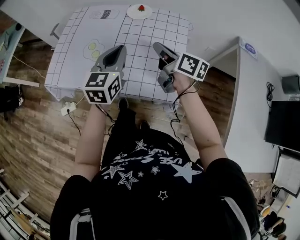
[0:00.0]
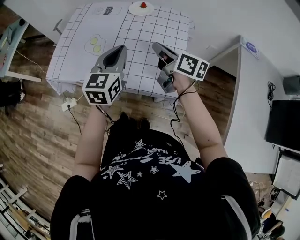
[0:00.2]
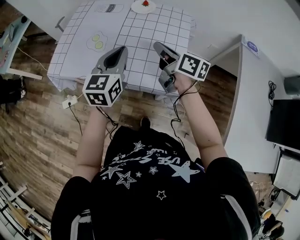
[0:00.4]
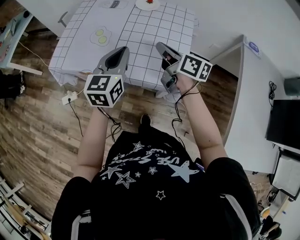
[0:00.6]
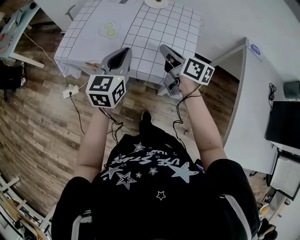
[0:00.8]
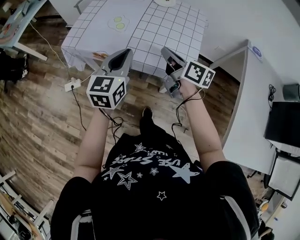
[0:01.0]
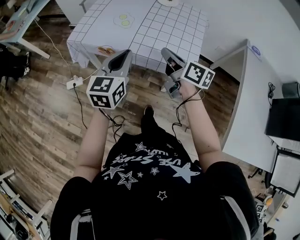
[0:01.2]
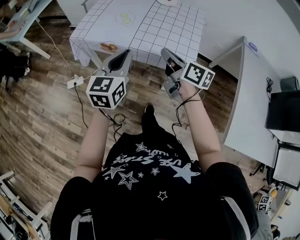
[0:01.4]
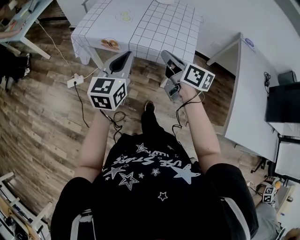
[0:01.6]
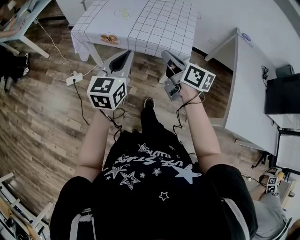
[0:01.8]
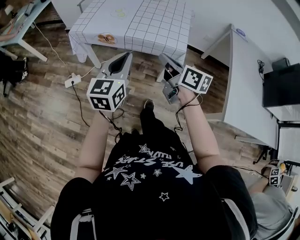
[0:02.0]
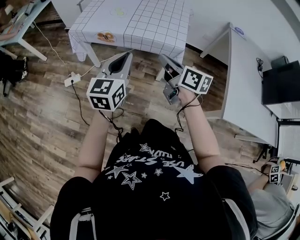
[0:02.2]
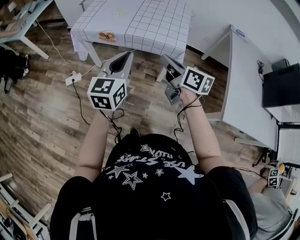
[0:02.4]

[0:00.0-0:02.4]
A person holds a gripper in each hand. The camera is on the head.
0:00.0 to 0:01.2: The left gripper ends up roughly 10 cm from where it was.
0:01.2 to 0:02.4: The left gripper ends up some 15 cm from where it was.

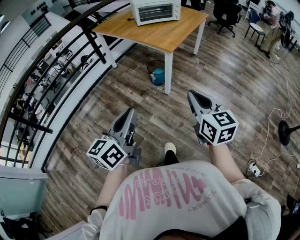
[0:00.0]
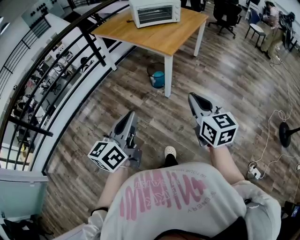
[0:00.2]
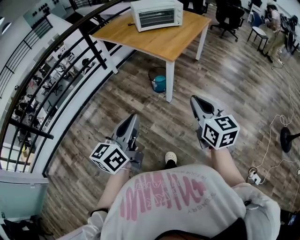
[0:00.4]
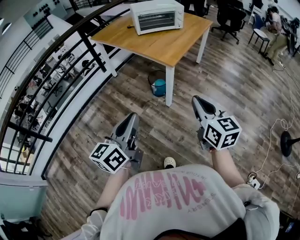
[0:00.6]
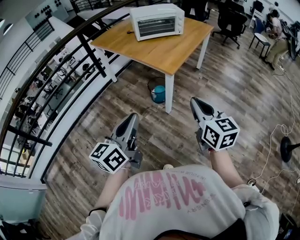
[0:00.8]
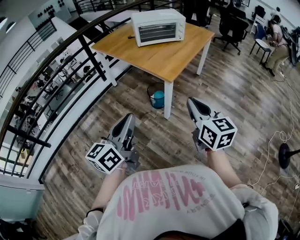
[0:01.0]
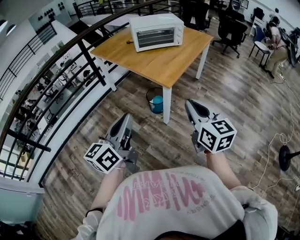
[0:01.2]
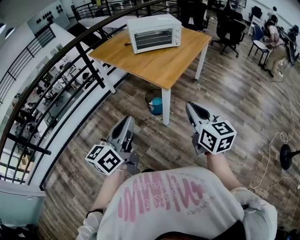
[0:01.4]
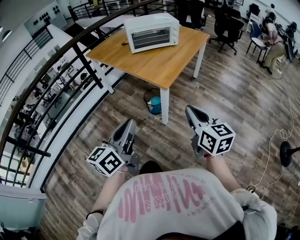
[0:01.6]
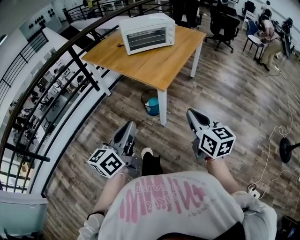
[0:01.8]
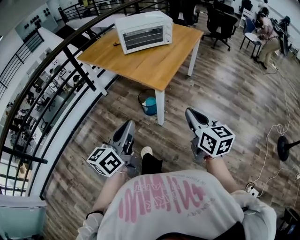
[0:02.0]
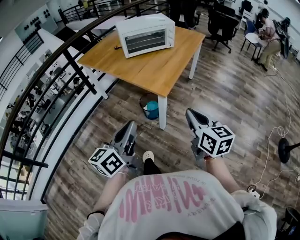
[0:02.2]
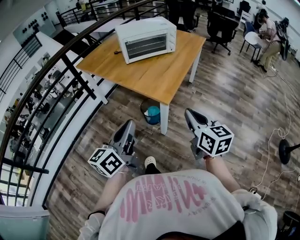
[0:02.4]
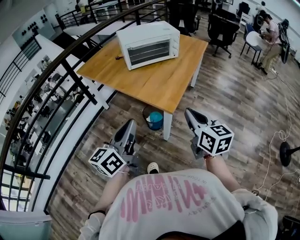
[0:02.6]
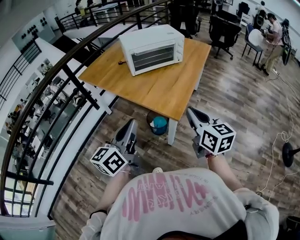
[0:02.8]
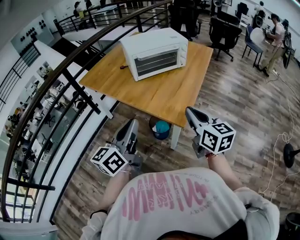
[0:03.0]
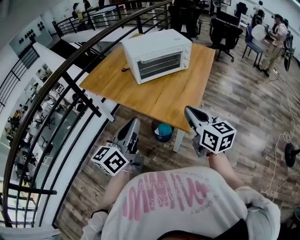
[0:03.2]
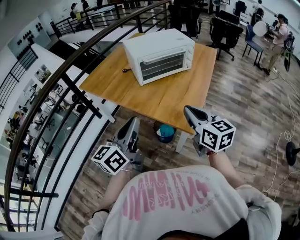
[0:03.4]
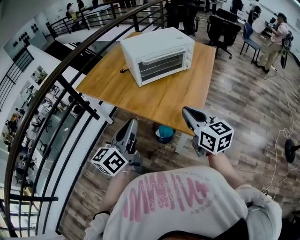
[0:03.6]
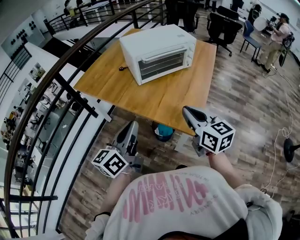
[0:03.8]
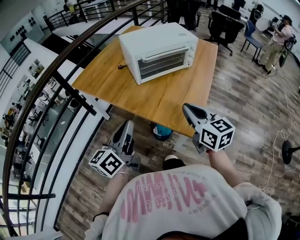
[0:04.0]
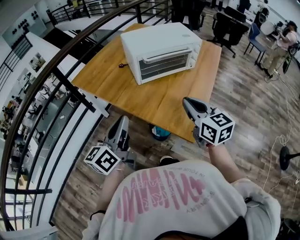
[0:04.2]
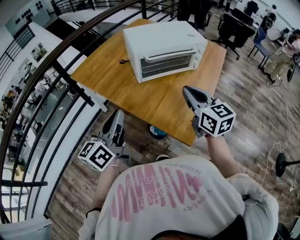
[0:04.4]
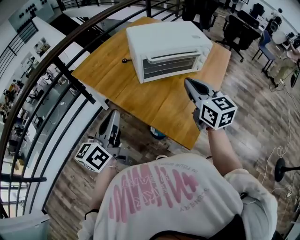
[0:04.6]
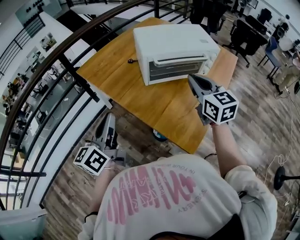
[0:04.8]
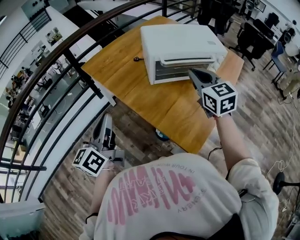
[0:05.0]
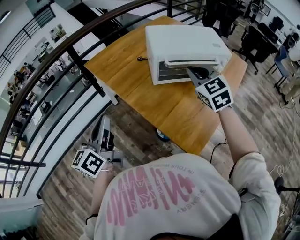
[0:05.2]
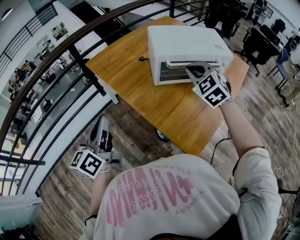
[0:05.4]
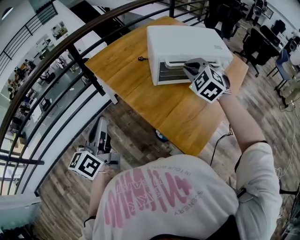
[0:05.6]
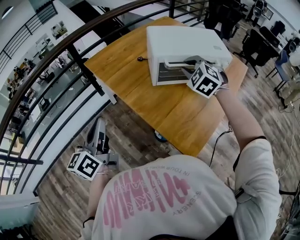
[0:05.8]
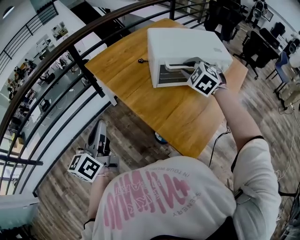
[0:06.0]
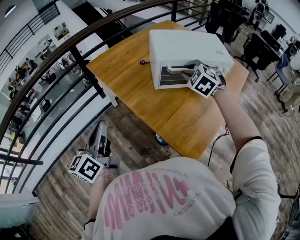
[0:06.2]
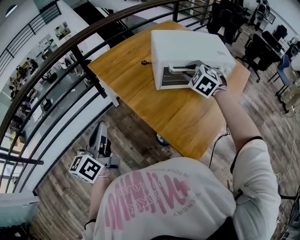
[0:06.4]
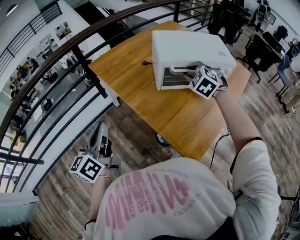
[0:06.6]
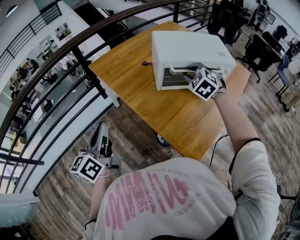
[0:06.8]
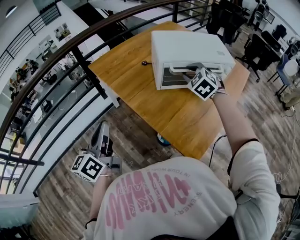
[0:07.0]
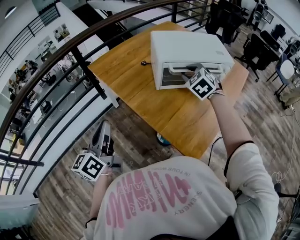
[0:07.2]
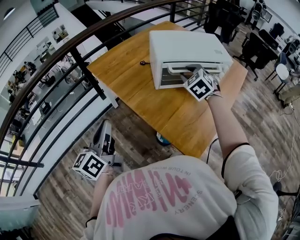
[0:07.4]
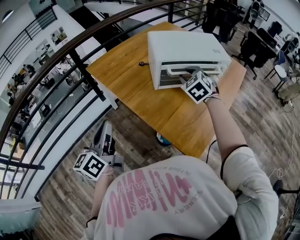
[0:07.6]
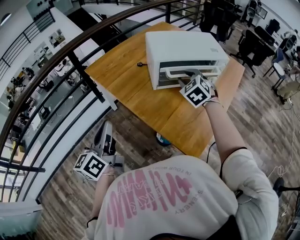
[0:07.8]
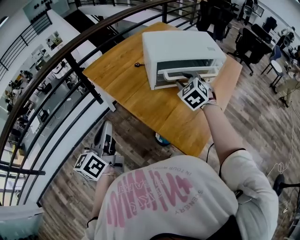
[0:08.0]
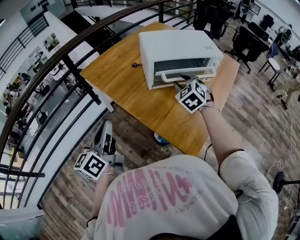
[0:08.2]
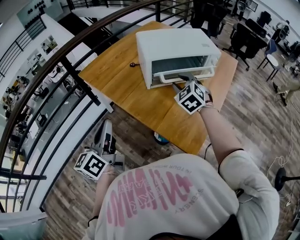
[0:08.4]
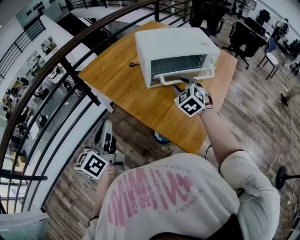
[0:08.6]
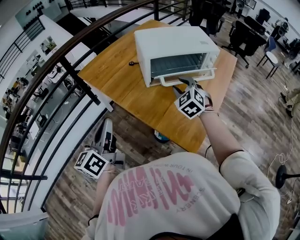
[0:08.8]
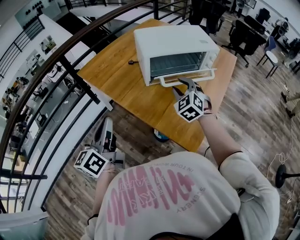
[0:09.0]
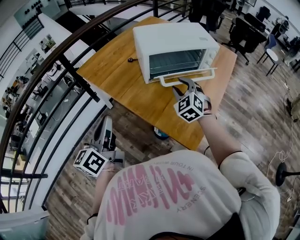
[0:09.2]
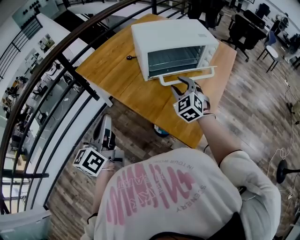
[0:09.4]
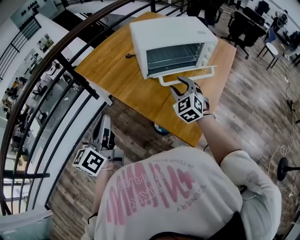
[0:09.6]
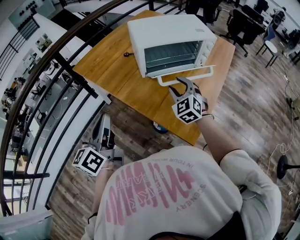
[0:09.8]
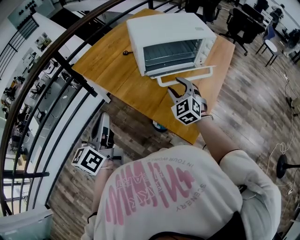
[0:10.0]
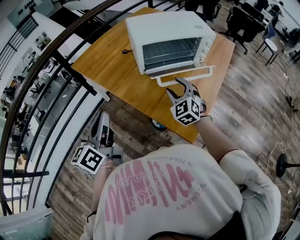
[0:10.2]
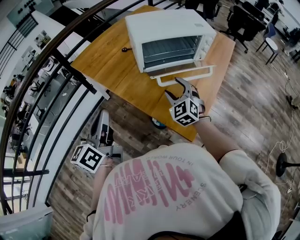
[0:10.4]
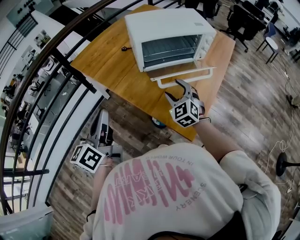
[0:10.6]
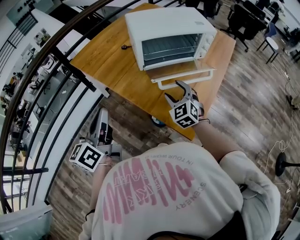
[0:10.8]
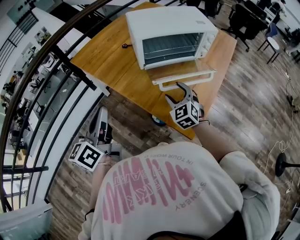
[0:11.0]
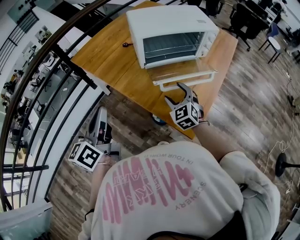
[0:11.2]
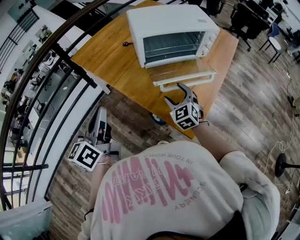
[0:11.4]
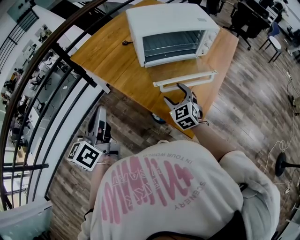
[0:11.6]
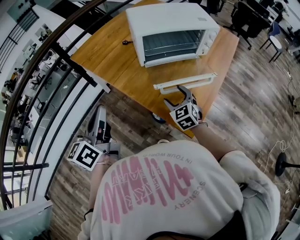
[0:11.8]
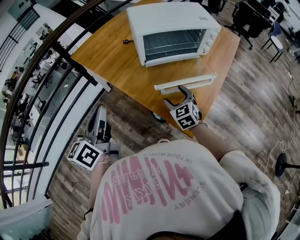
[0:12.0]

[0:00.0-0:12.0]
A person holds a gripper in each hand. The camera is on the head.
0:00.0 to 0:01.6: Both grippers move forward, about 20 cm.
0:01.6 to 0:03.0: Both grippers move forward, roughly 25 cm.
0:03.0 to 0:04.4: The right gripper is displaced forward by roughly 20 cm. Meanwhile the left gripper shifts approximately 20 cm forward and to the left.
0:04.4 to 0:06.0: The left gripper travels to the left by some 10 cm, and swivels approximately 20 degrees, while the right gripper moves forward, some 20 cm, and rolls counterclockwise, seen from behind, by approximately 60 degrees.
0:06.0 to 0:07.6: There are only small adjustments of the grippers.
0:07.6 to 0:09.0: The right gripper is displaced backward by roughly 5 cm.
0:09.0 to 0:10.4: The right gripper is displaced backward by some 5 cm.
0:10.4 to 0:12.0: The right gripper moves downward, about 5 cm, and turns by about 20 degrees.

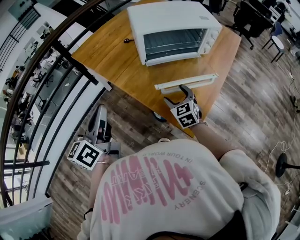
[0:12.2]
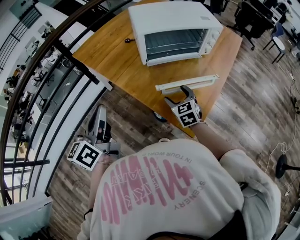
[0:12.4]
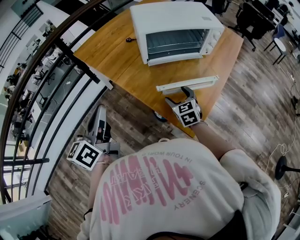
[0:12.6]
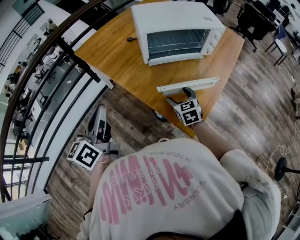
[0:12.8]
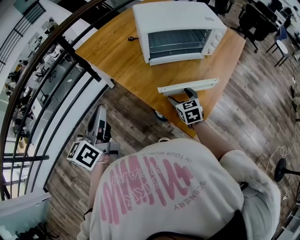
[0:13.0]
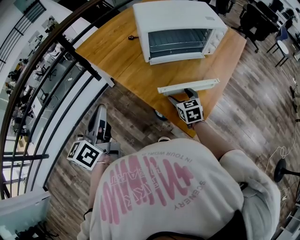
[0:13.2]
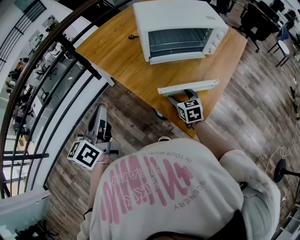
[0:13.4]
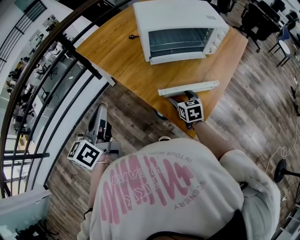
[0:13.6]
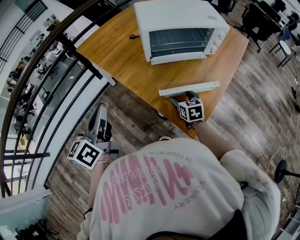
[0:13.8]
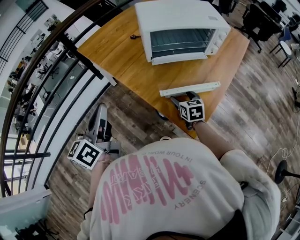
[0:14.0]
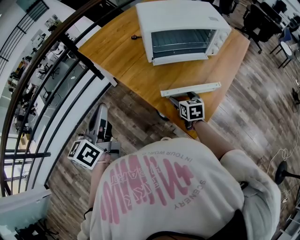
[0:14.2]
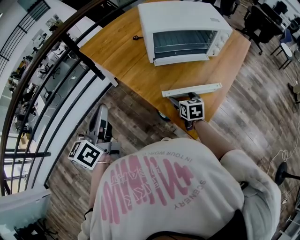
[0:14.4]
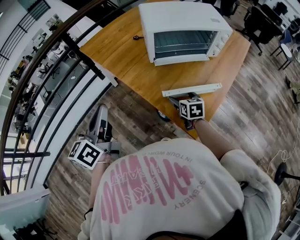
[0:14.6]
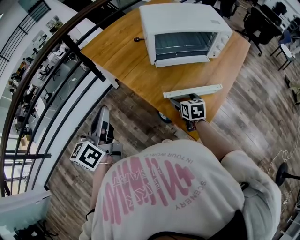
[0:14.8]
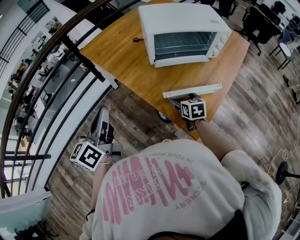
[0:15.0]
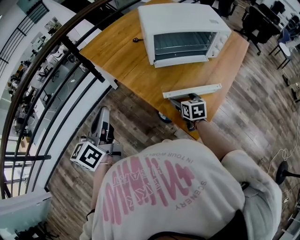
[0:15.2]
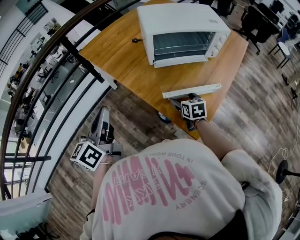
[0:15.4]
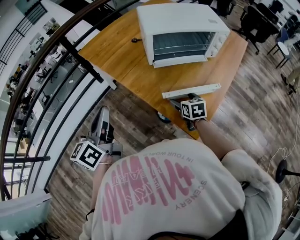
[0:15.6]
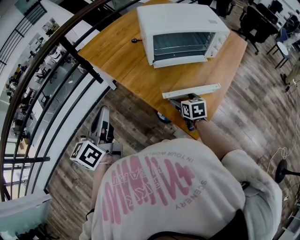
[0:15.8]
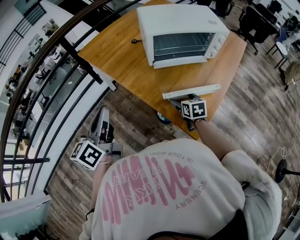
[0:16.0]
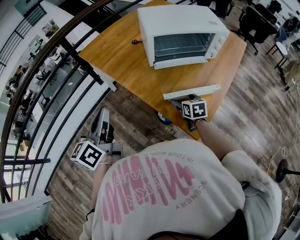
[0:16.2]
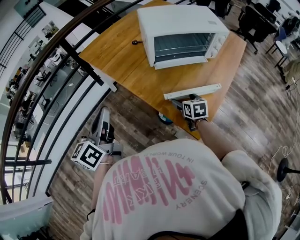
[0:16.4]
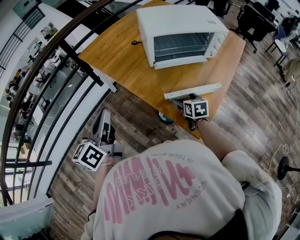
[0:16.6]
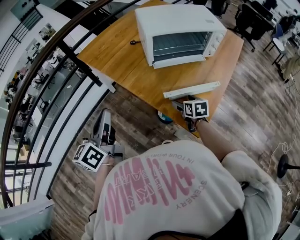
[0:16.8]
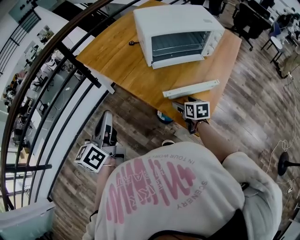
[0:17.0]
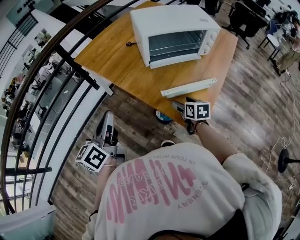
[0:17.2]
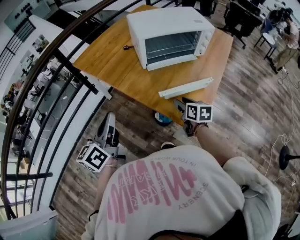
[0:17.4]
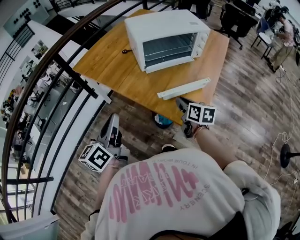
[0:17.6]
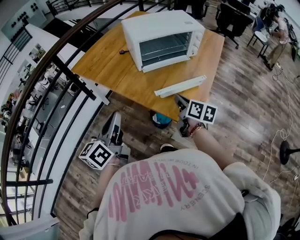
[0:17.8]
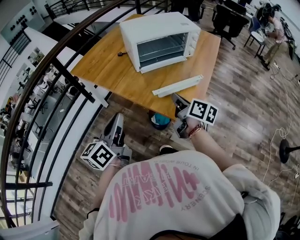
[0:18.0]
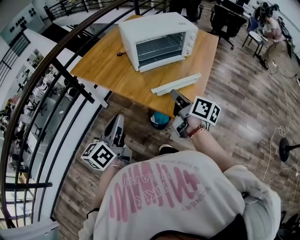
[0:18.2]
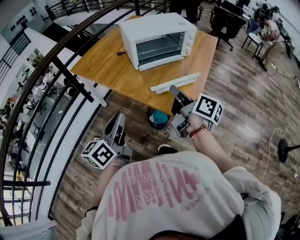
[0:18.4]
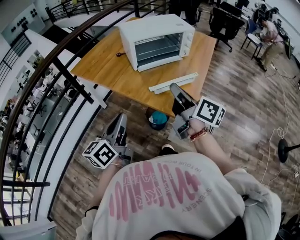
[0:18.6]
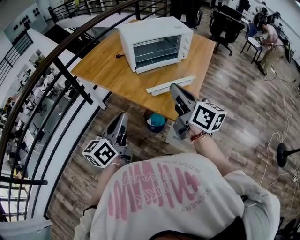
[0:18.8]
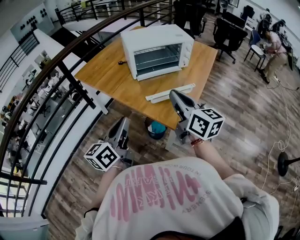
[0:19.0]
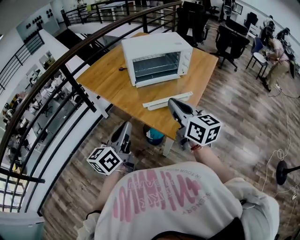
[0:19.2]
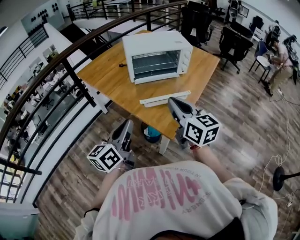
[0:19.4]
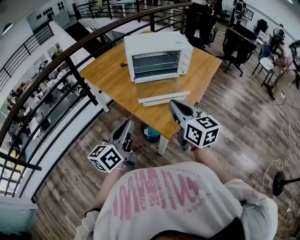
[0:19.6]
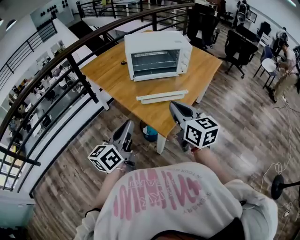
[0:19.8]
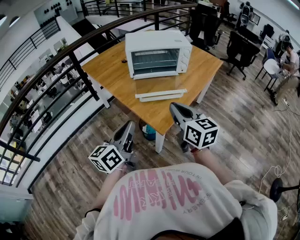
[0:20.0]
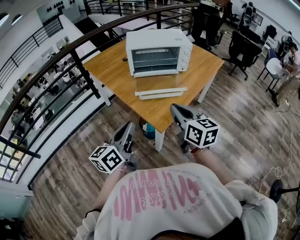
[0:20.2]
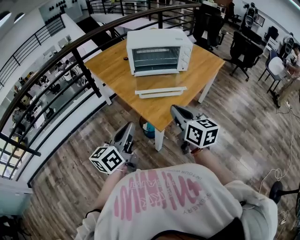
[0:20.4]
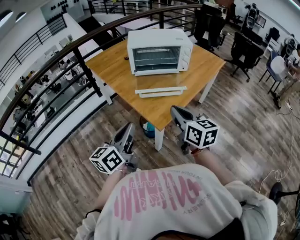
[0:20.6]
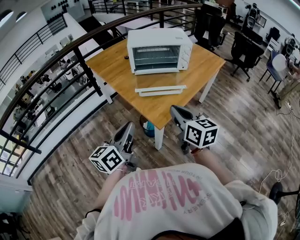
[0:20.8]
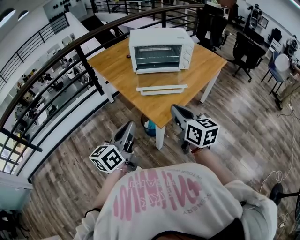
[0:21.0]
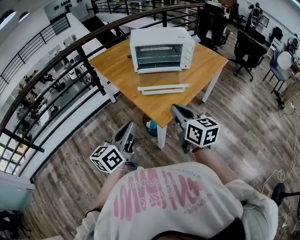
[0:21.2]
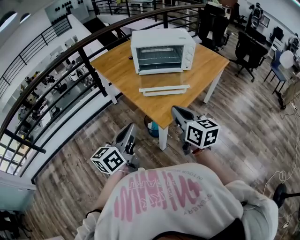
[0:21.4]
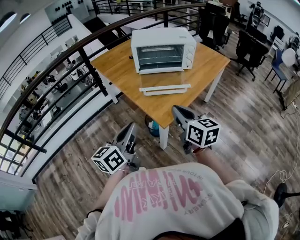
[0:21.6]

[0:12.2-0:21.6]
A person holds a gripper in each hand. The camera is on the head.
0:12.2 to 0:13.8: The right gripper is displaced downward by some 5 cm, and changes its angle by some 20 degrees.
0:13.8 to 0:17.0: The grippers make only small movements.
0:17.0 to 0:18.4: The right gripper moves upward and backward, approximately 25 cm, angles its fingers upward, by roughly 40 degrees, and closes its fingers; the left gripper is displaced to the right and backward by approximately 10 cm.
0:18.4 to 0:20.0: Both grippers move to the right and backward, roughly 15 cm. The right gripper rolls counterclockwise, seen from behind, by roughly 40 degrees.
0:20.0 to 0:21.6: The grippers make only small movements.
